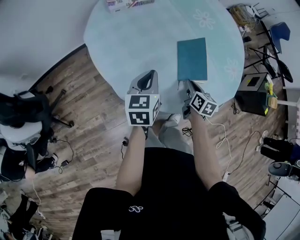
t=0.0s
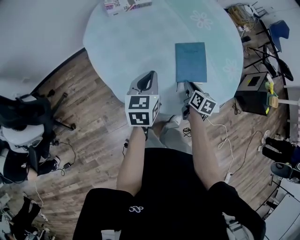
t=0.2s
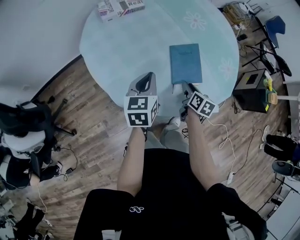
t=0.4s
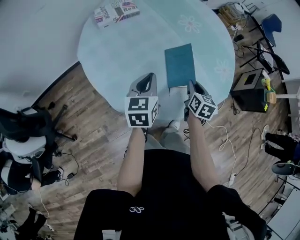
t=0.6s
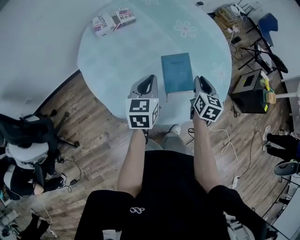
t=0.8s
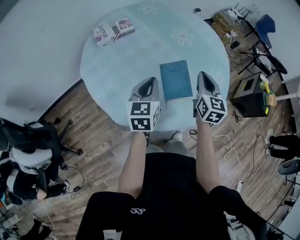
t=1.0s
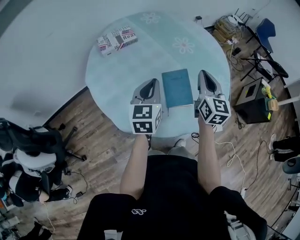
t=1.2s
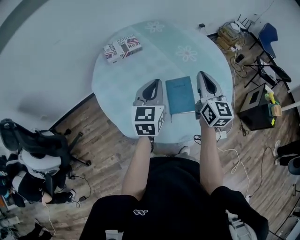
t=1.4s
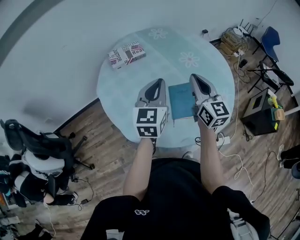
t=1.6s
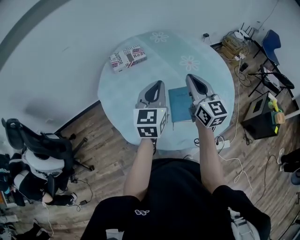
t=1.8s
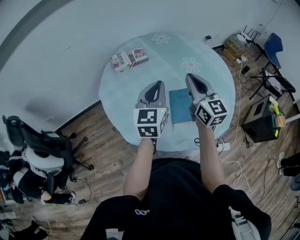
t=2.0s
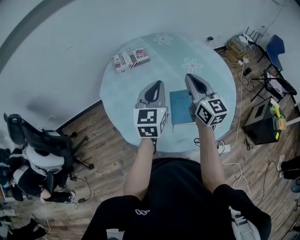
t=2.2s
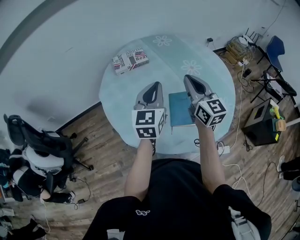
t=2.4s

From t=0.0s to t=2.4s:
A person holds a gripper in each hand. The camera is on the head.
From t=0.0s to t=1.2s: The left gripper travels upward, to the right and forward by about 15 cm, while the right gripper travels upward by roughly 25 cm, angles its fingers upward, by approximately 30 degrees, and opens and closes again.
From t=1.2s to t=2.4s: The left gripper shifts roughly 10 cm upward, while the right gripper is displaced to the left and upward by about 10 cm, and changes its angle by approximately 30 degrees.

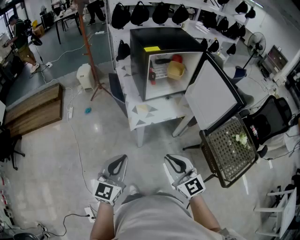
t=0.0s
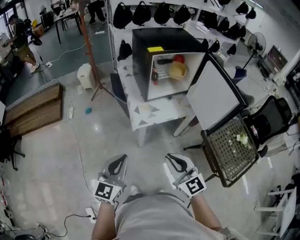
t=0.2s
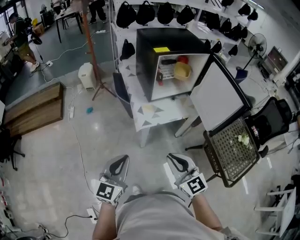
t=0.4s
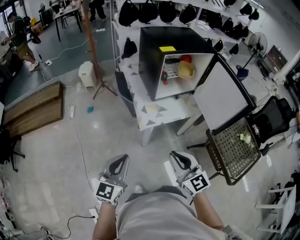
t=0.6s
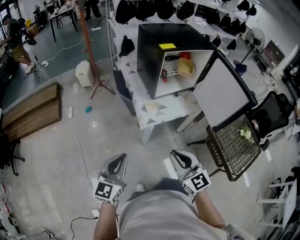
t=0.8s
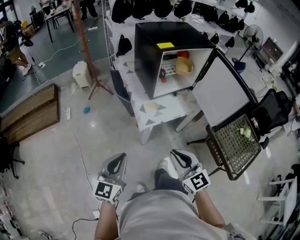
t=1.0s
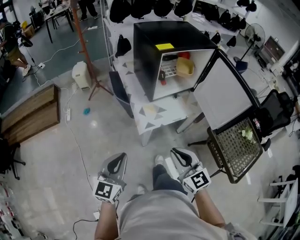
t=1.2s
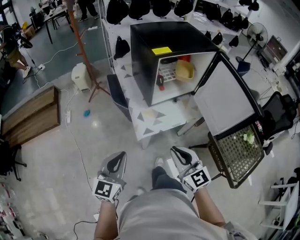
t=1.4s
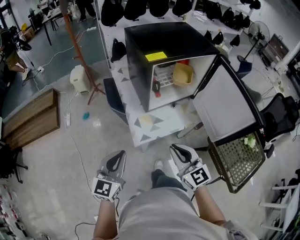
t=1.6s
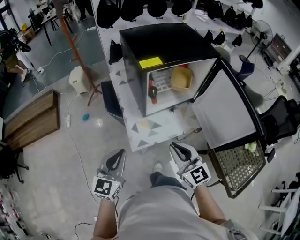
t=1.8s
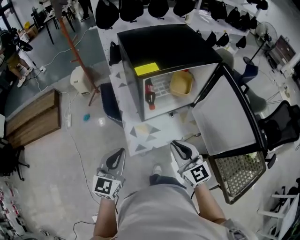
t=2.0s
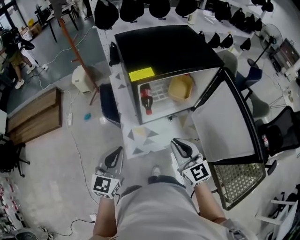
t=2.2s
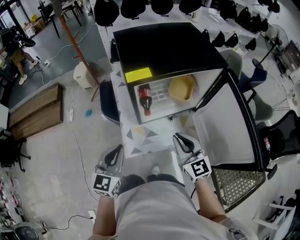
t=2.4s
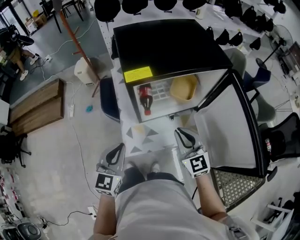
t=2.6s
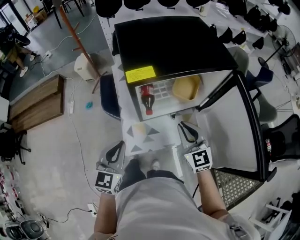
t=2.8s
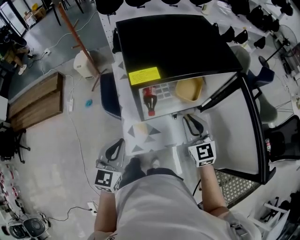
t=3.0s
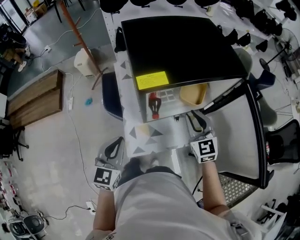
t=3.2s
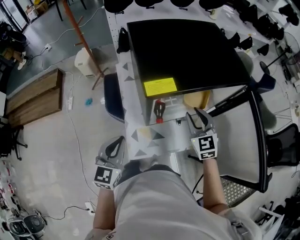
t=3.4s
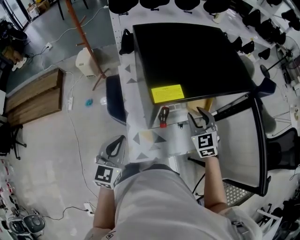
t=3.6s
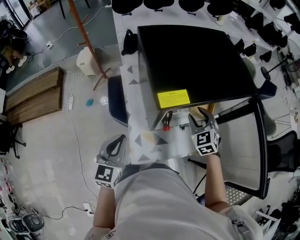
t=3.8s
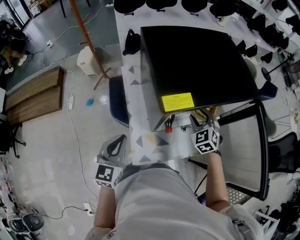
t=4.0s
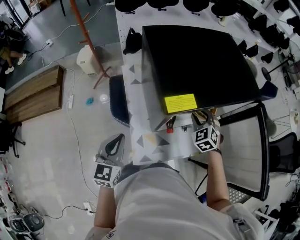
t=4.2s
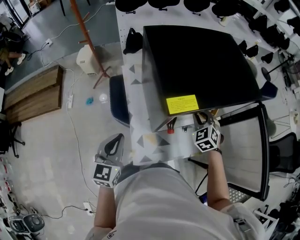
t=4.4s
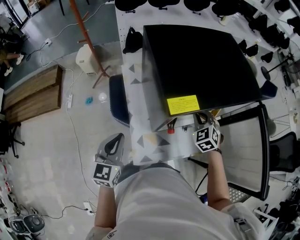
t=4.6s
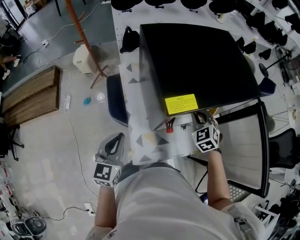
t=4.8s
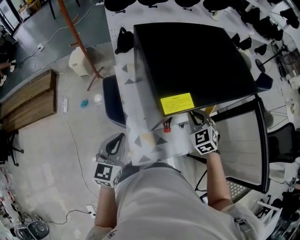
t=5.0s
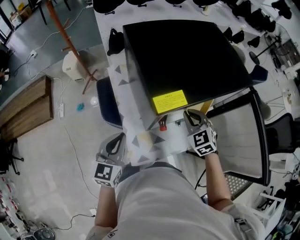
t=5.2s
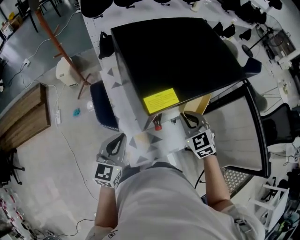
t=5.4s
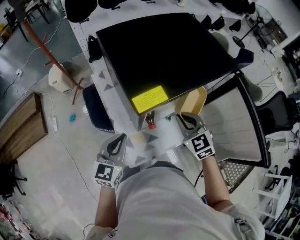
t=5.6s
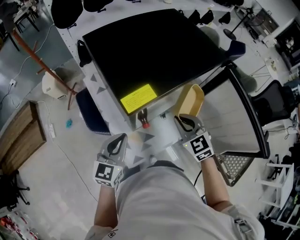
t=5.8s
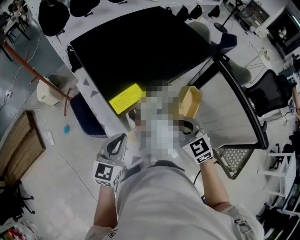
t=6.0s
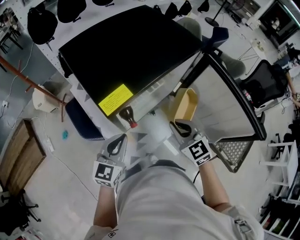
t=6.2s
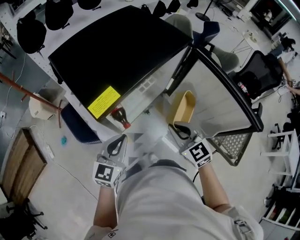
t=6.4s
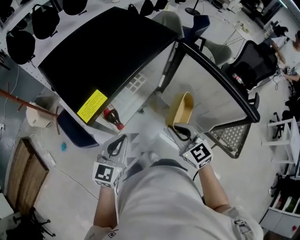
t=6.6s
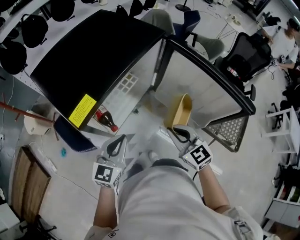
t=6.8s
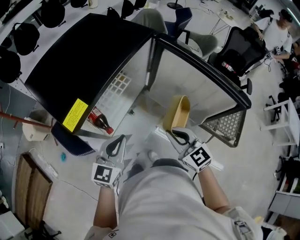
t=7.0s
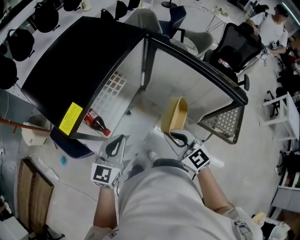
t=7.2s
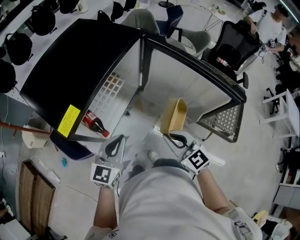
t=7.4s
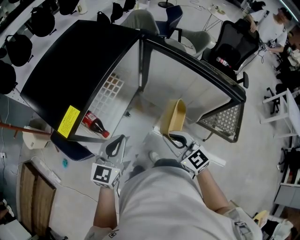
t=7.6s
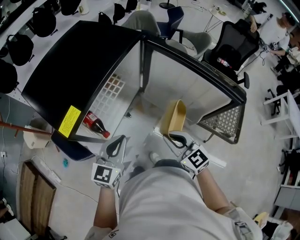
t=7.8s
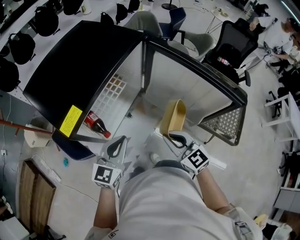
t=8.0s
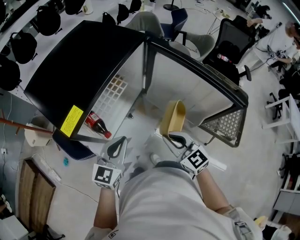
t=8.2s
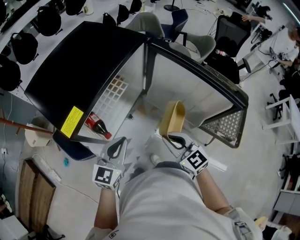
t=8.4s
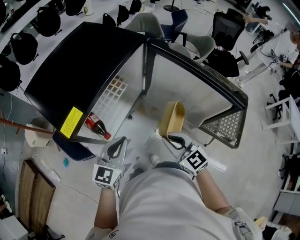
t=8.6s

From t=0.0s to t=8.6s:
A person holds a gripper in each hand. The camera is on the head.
From t=0.0s to t=1.4s: The right gripper travels forward by roughly 15 cm; the left gripper shifts some 15 cm forward and to the left.
From t=1.4s to t=2.8s: The grippers both shift forward and to the right by some 30 cm.
From t=2.8s to t=4.4s: The left gripper goes about 15 cm to the left and forward. Meanwhile the right gripper is displaced forward and downward by roughly 20 cm, rotates roughly 40 degrees, and opens, then closes once more.
From t=4.4s to t=5.8s: The left gripper is displaced to the right by some 10 cm, and turns by about 30 degrees. The right gripper heads backward and upward, covering approximately 10 cm, and changes its angle by some 30 degrees.
From t=5.8s to t=7.2s: The left gripper shifts roughly 15 cm to the right, and turns by about 30 degrees; the right gripper travels backward and to the right by approximately 15 cm, and swivels about 30 degrees.
From t=7.2s to t=8.6s: The grippers move only a little.

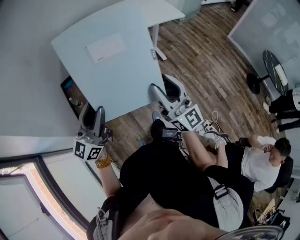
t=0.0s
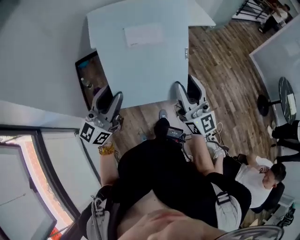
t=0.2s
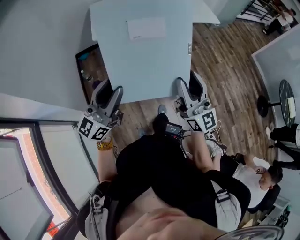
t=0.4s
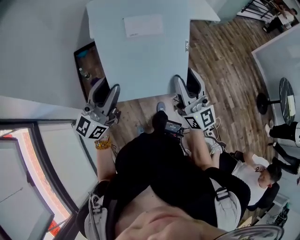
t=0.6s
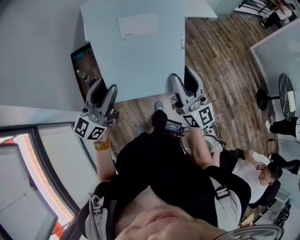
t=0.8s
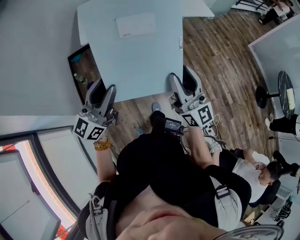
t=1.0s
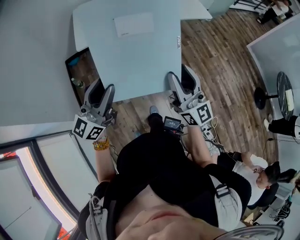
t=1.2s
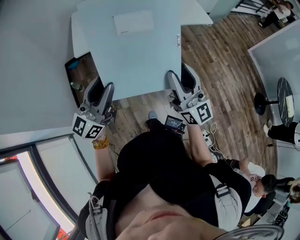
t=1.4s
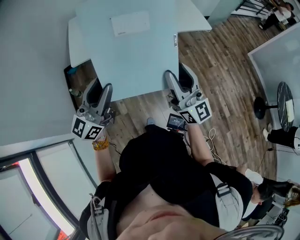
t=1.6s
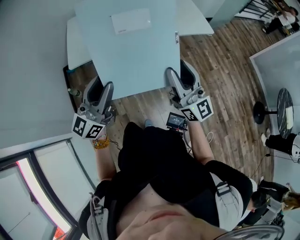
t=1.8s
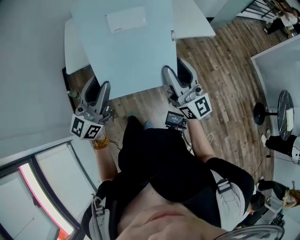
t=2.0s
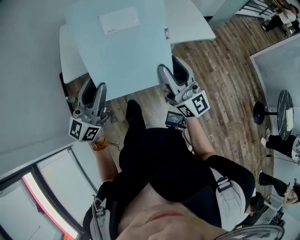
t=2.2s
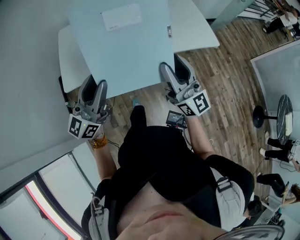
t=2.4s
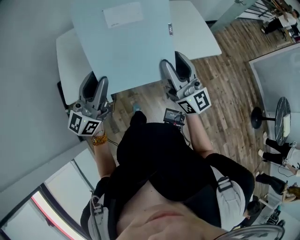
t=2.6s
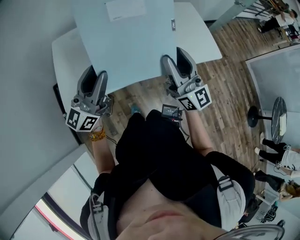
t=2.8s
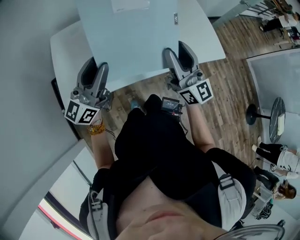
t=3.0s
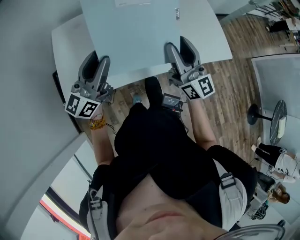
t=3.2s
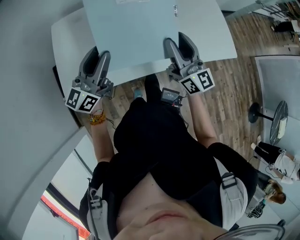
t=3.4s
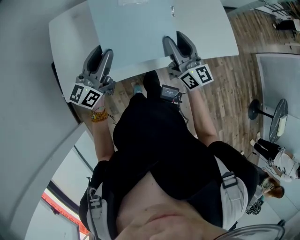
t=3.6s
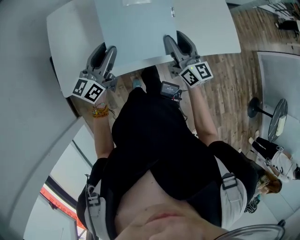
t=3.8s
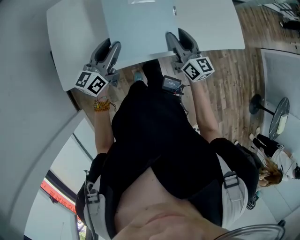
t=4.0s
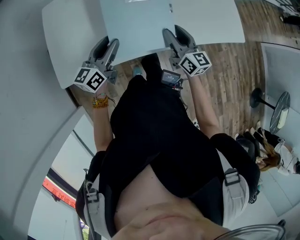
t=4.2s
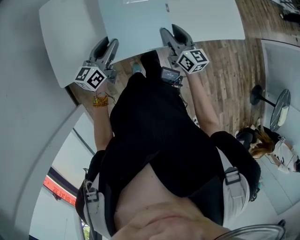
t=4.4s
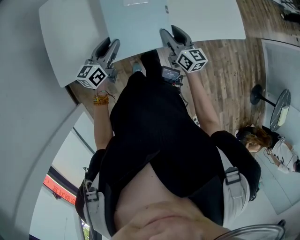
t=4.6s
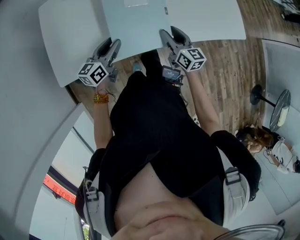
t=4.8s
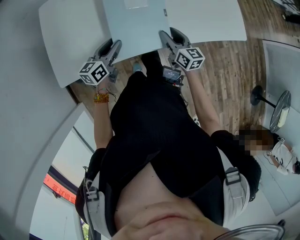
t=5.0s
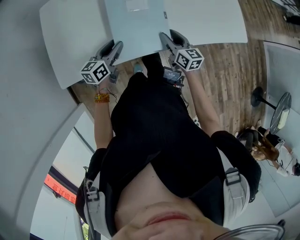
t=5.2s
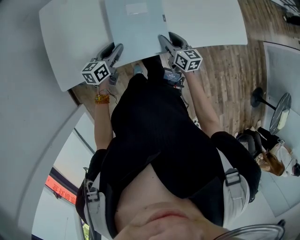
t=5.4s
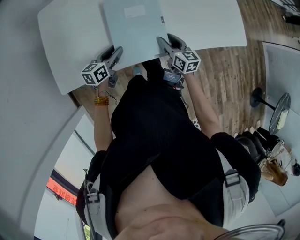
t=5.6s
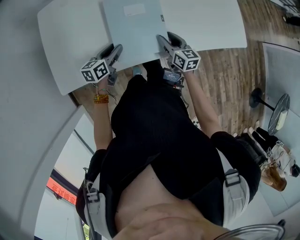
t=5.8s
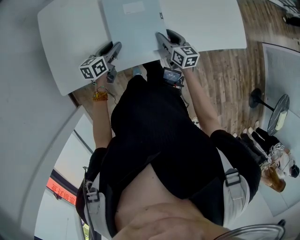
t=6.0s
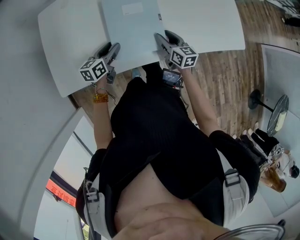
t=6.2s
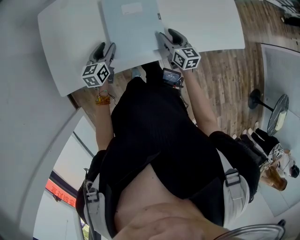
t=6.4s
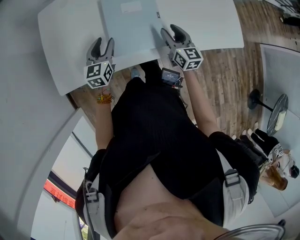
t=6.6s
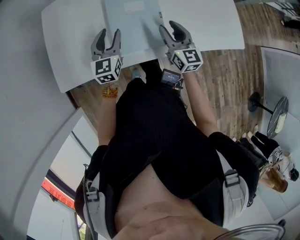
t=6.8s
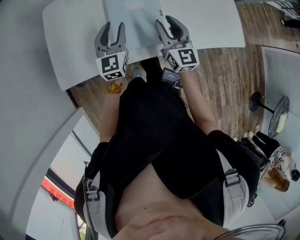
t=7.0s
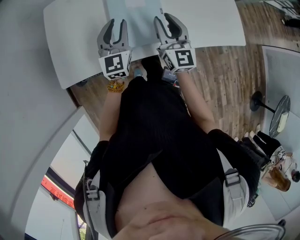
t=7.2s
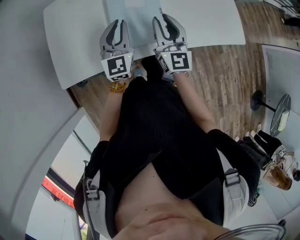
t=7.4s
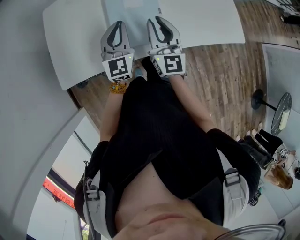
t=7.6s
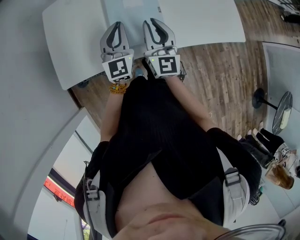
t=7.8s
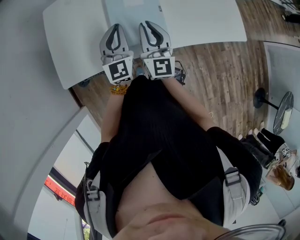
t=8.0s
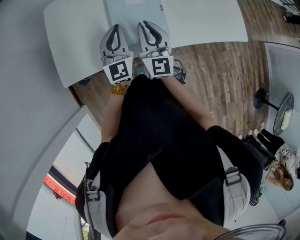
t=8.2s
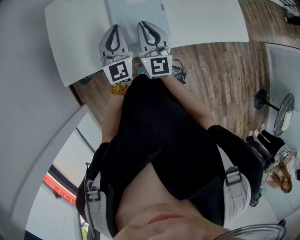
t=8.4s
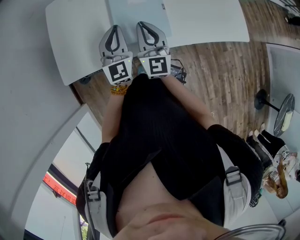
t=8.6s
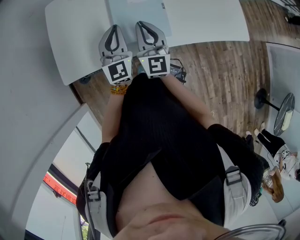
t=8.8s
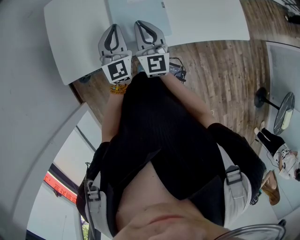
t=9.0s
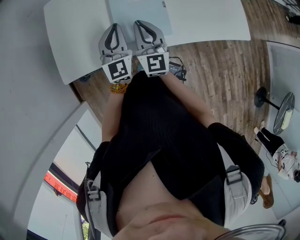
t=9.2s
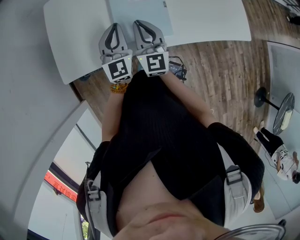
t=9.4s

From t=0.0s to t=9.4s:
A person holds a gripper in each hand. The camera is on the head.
From t=0.0s to t=1.6s: The right gripper is displaced forward and to the right by about 25 cm; the left gripper travels forward by roughly 20 cm.
From t=1.6s to t=3.2s: The two grippers travel together, forward, about 40 cm.
From t=3.2s to t=4.8s: The two grippers go about 25 cm downward. The right gripper angles its fingers downward, by approximately 30 degrees, while the left gripper changes its angle by approximately 30 degrees.
From t=4.8s to t=6.2s: The right gripper goes roughly 10 cm forward and downward. Meanwhile the left gripper travels downward and forward by approximately 10 cm.
From t=6.2s to t=7.8s: The right gripper shifts some 20 cm upward and to the left, rotates about 40 degrees, and closes. Meanwhile the left gripper travels upward by roughly 20 cm, rotates about 50 degrees, and closes.
From t=7.8s to t=9.4s: The right gripper travels to the left by some 5 cm.

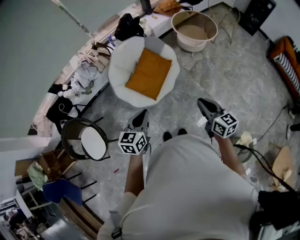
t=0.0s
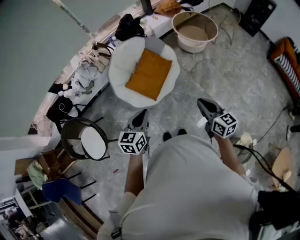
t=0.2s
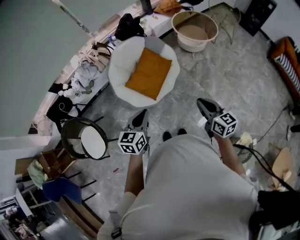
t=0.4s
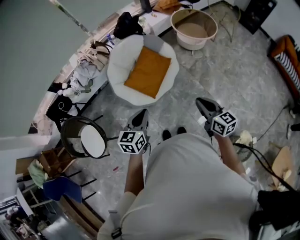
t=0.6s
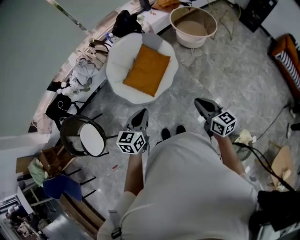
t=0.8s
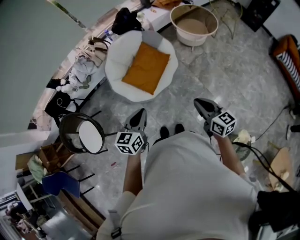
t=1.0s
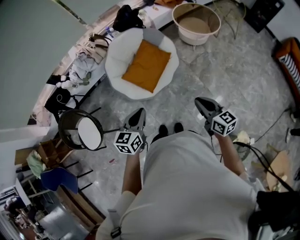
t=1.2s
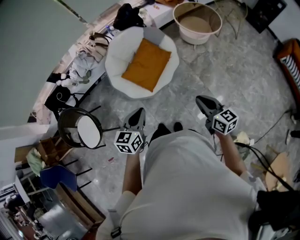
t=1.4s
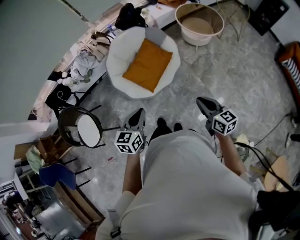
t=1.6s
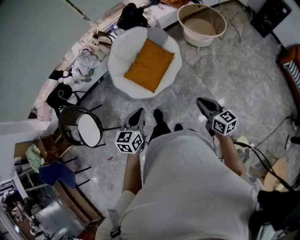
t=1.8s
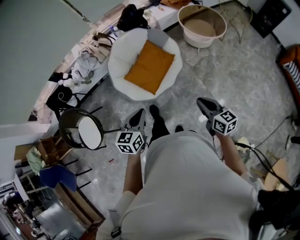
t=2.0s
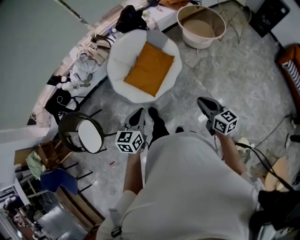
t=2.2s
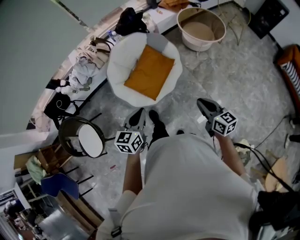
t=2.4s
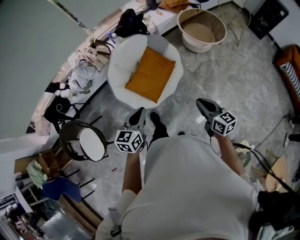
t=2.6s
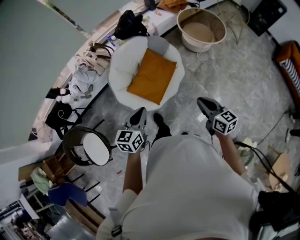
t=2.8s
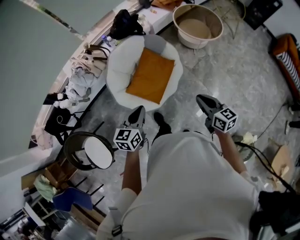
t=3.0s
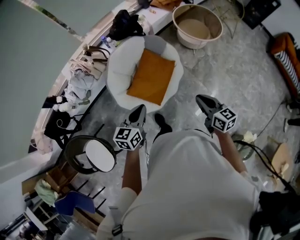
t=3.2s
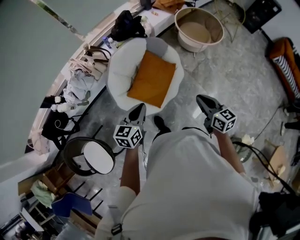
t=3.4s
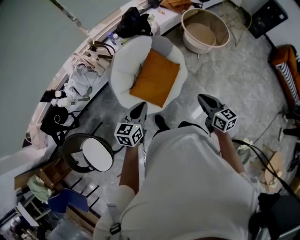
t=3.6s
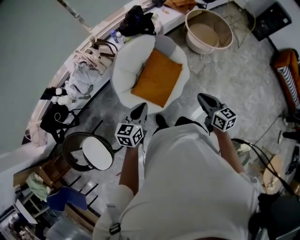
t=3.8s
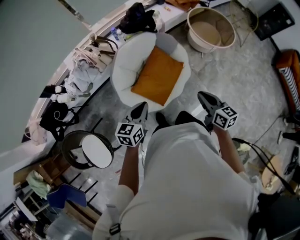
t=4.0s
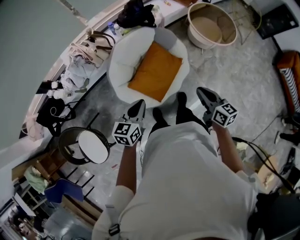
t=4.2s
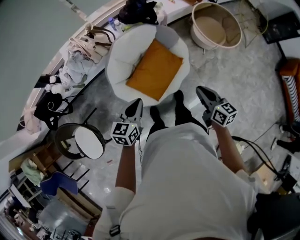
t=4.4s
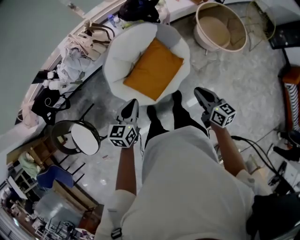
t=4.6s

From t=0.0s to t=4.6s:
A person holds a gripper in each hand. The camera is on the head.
From t=0.0s to t=1.6s: The grippers both shift to the right by some 5 cm.
From t=1.6s to t=3.0s: Both grippers move forward and to the left, approximately 20 cm.
From t=3.0s to t=4.6s: Both grippers travel together forward, about 20 cm.
